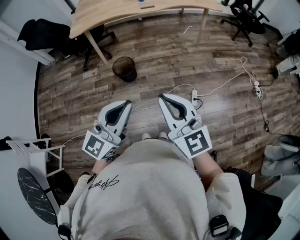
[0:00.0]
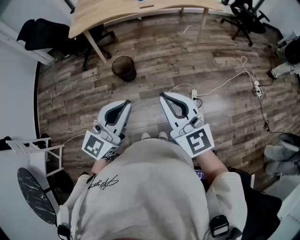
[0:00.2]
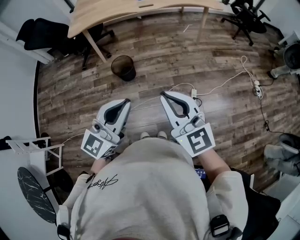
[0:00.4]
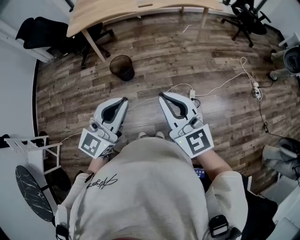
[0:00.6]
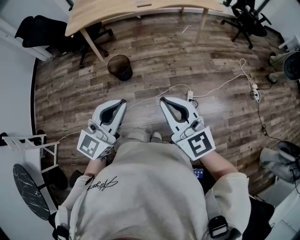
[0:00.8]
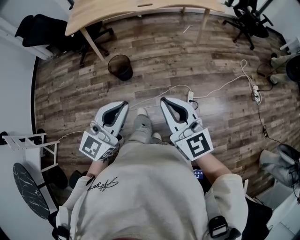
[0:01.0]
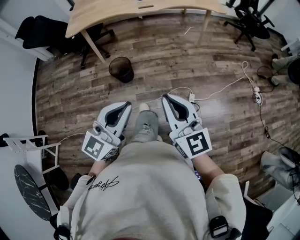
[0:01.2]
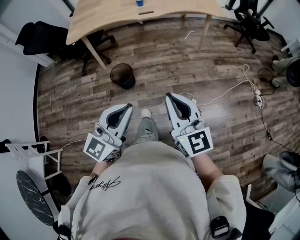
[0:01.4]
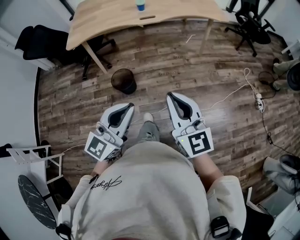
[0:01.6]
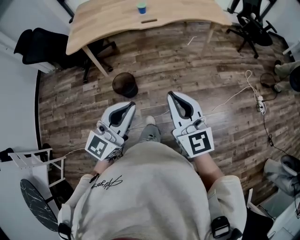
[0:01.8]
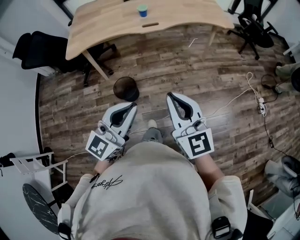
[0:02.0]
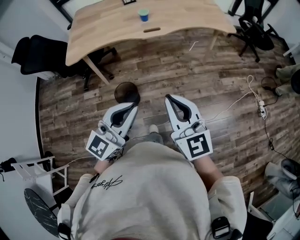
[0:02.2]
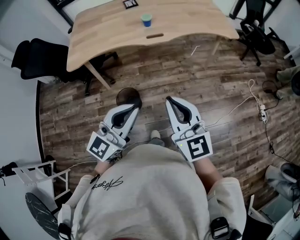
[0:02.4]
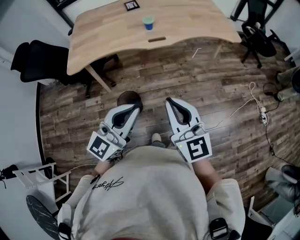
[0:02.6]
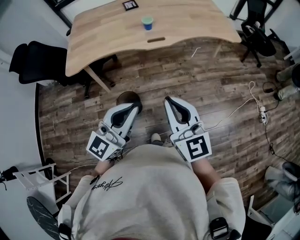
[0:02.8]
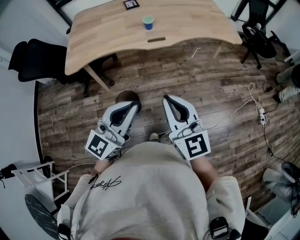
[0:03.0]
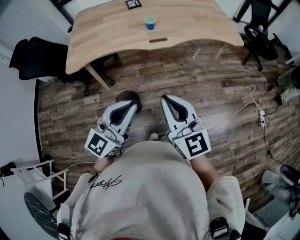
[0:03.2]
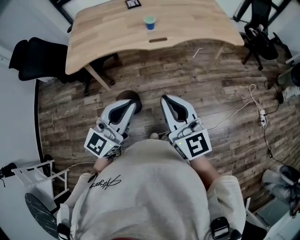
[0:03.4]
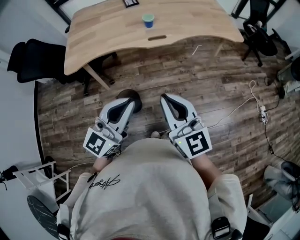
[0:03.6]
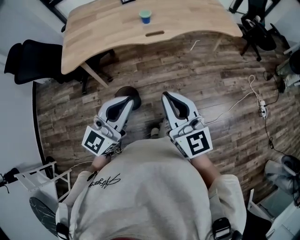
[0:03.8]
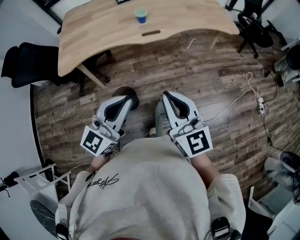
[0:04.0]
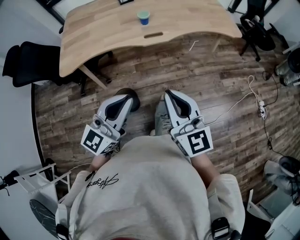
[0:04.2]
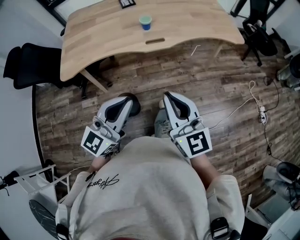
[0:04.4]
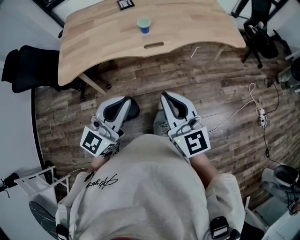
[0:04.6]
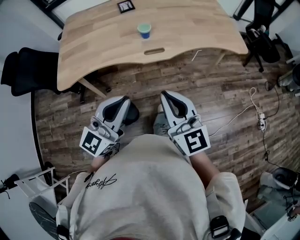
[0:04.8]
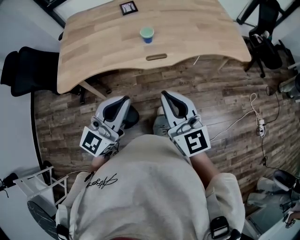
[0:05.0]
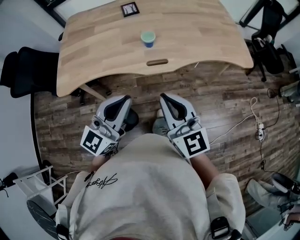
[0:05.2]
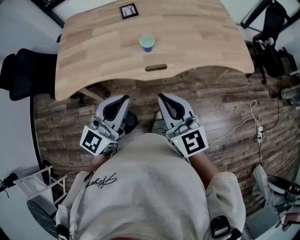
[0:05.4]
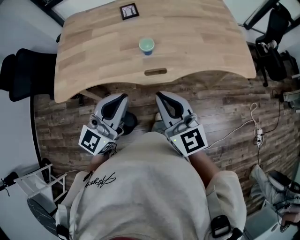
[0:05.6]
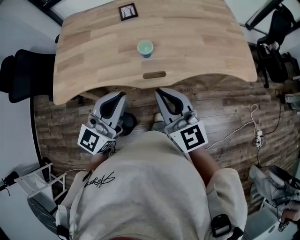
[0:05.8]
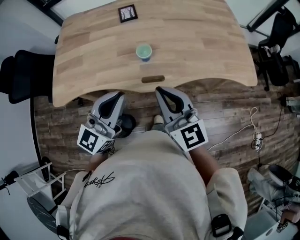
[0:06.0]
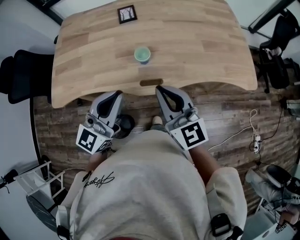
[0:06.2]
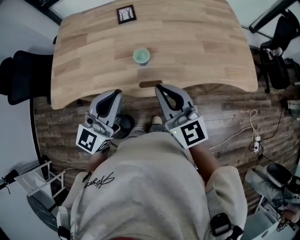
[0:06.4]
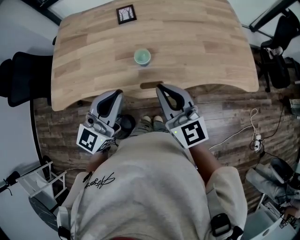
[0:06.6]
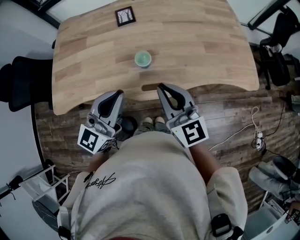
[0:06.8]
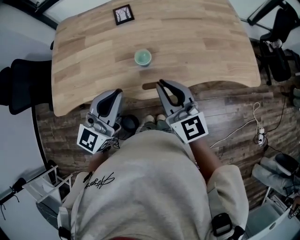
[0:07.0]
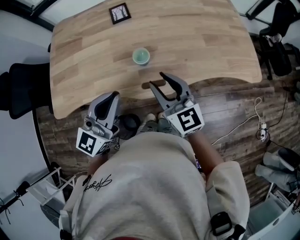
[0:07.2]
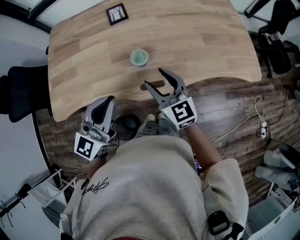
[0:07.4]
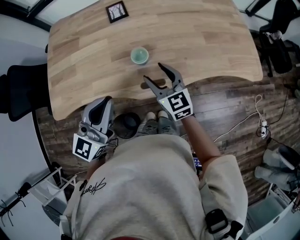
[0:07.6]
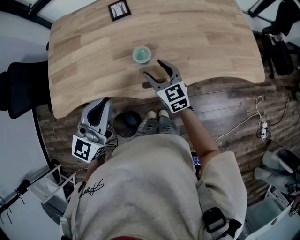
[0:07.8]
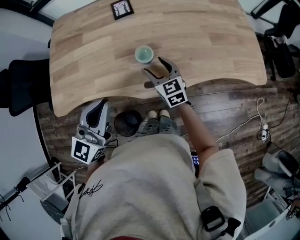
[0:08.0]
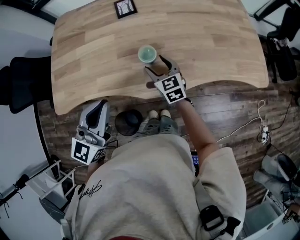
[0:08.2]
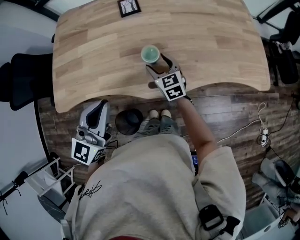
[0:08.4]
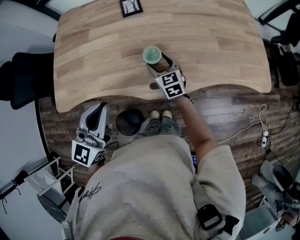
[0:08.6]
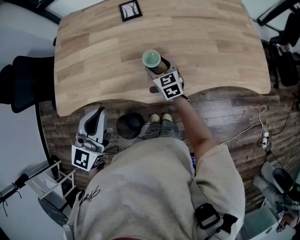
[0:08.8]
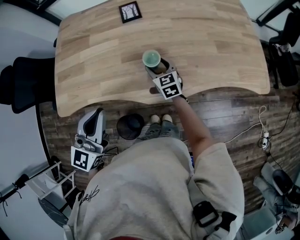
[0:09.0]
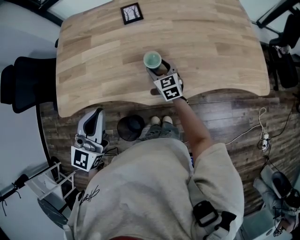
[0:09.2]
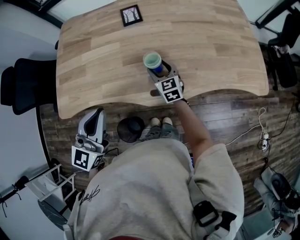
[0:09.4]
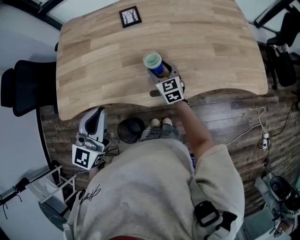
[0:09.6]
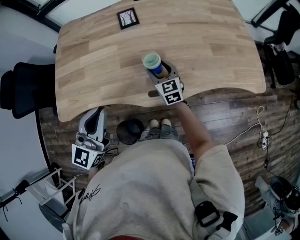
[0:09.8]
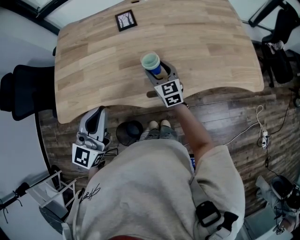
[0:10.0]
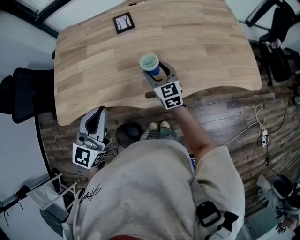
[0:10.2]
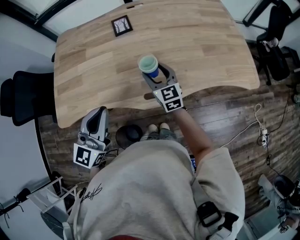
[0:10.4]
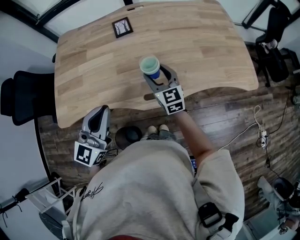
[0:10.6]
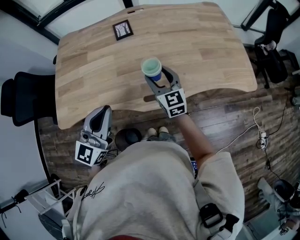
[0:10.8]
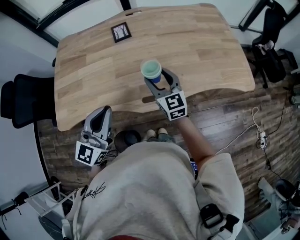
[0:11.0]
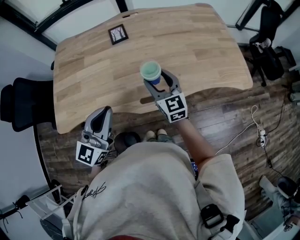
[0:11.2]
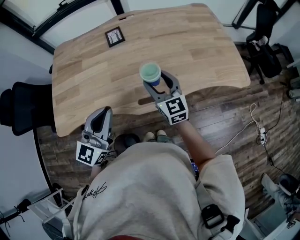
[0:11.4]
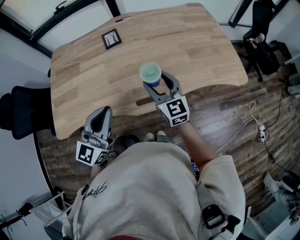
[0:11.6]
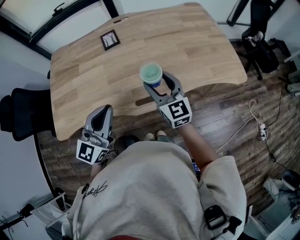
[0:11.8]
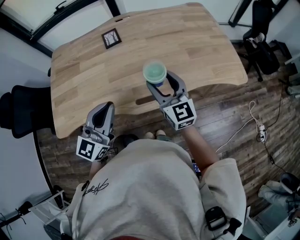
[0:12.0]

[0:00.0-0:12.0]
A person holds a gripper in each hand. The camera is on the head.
0:00.0 to 0:01.6: Both grippers move forward, roughly 15 cm.
0:01.6 to 0:03.0: The grippers both shift forward and to the left by roughly 25 cm.
0:03.0 to 0:04.4: Both grippers travel together forward, approximately 5 cm.
0:04.4 to 0:06.0: Both grippers travel together forward, approximately 30 cm.
0:06.0 to 0:07.6: The left gripper is displaced forward by about 5 cm. Meanwhile the right gripper travels forward and downward by roughly 20 cm, and opens up.
0:07.6 to 0:09.0: The left gripper shifts approximately 5 cm to the left, while the right gripper travels downward and forward by some 15 cm.
0:09.0 to 0:10.4: The right gripper is displaced upward by some 10 cm.
0:10.4 to 0:12.0: The right gripper heads upward, to the right and backward, covering roughly 15 cm; the left gripper moves to the right, about 5 cm.

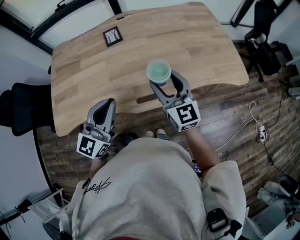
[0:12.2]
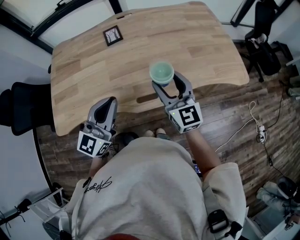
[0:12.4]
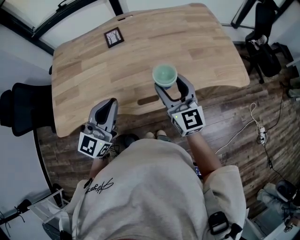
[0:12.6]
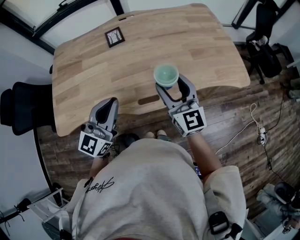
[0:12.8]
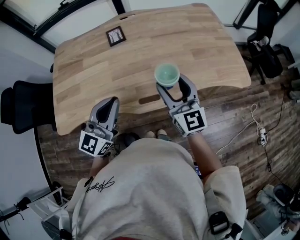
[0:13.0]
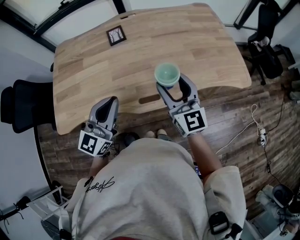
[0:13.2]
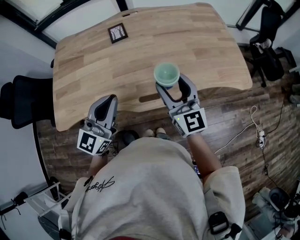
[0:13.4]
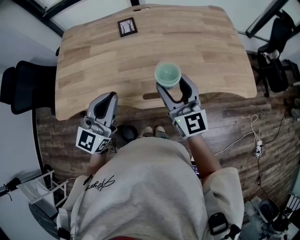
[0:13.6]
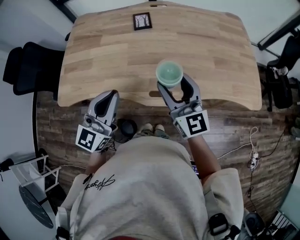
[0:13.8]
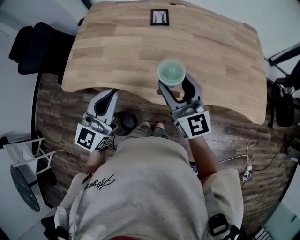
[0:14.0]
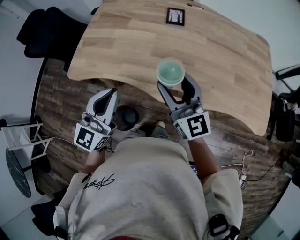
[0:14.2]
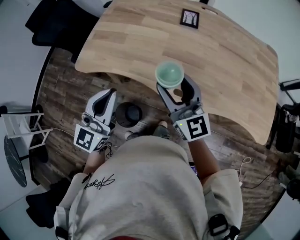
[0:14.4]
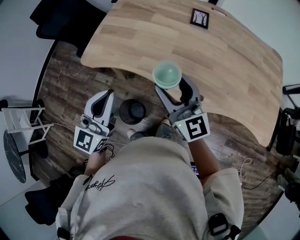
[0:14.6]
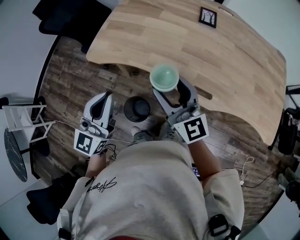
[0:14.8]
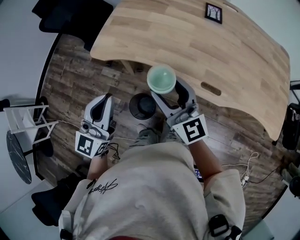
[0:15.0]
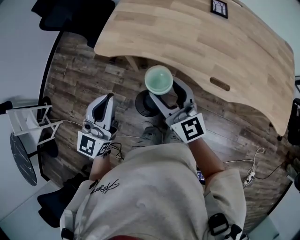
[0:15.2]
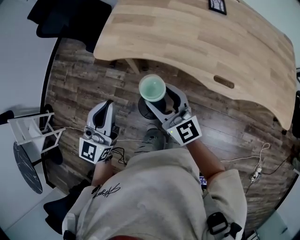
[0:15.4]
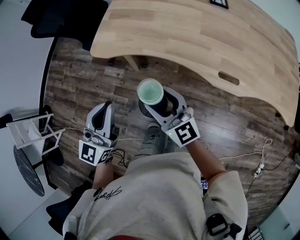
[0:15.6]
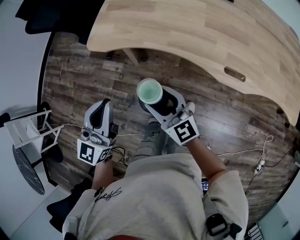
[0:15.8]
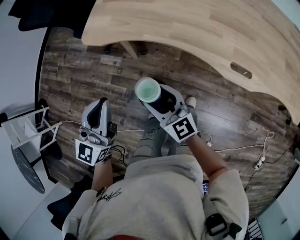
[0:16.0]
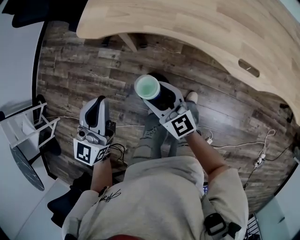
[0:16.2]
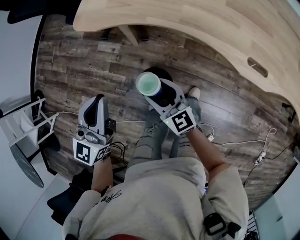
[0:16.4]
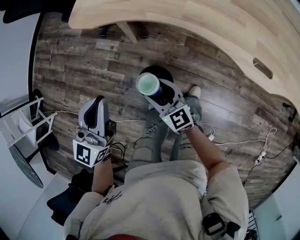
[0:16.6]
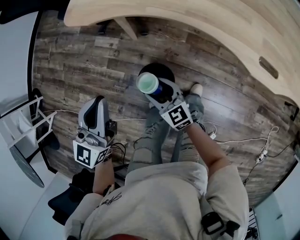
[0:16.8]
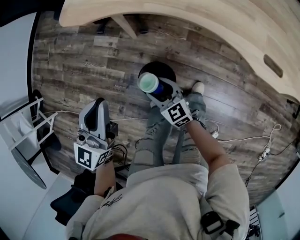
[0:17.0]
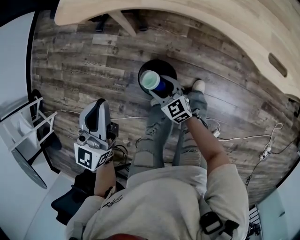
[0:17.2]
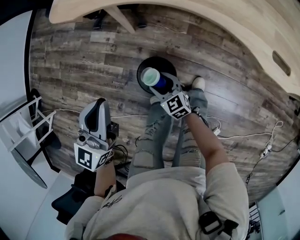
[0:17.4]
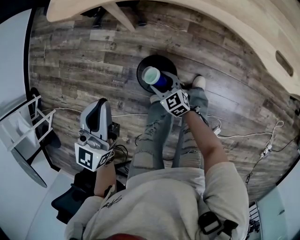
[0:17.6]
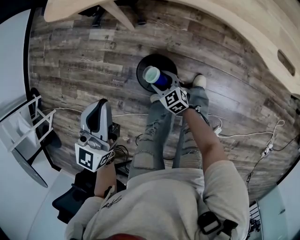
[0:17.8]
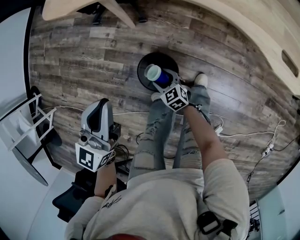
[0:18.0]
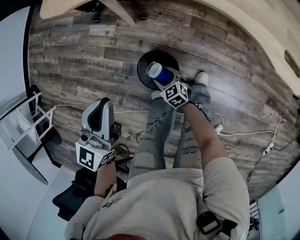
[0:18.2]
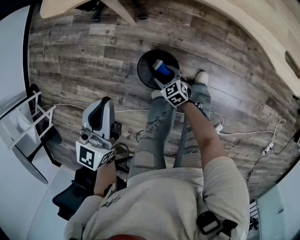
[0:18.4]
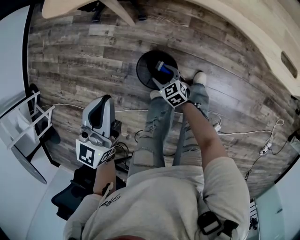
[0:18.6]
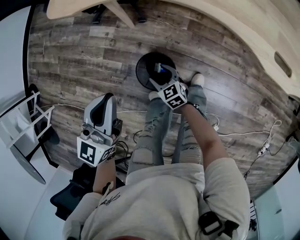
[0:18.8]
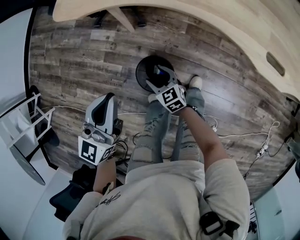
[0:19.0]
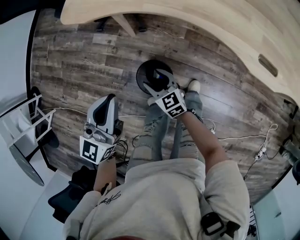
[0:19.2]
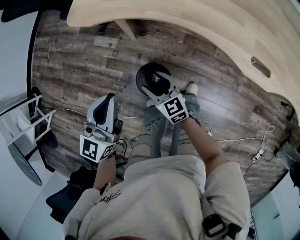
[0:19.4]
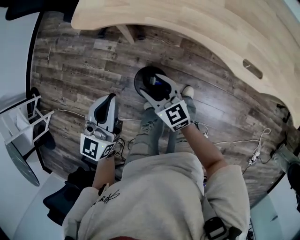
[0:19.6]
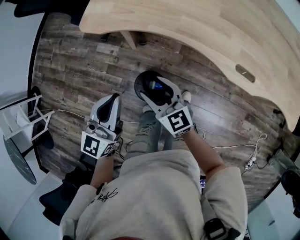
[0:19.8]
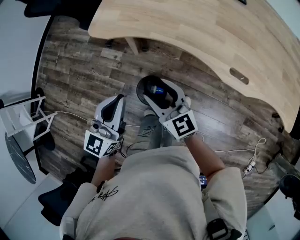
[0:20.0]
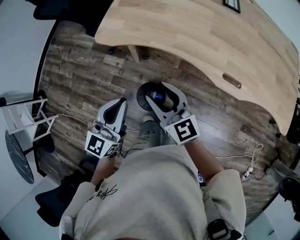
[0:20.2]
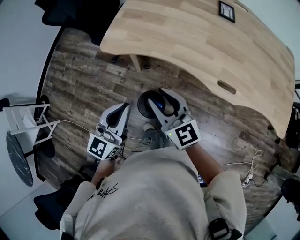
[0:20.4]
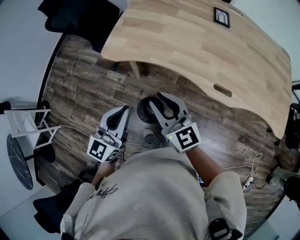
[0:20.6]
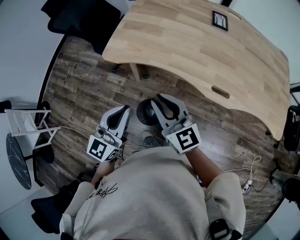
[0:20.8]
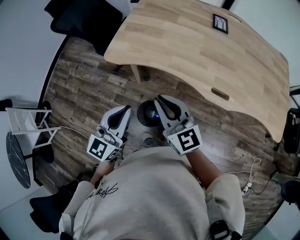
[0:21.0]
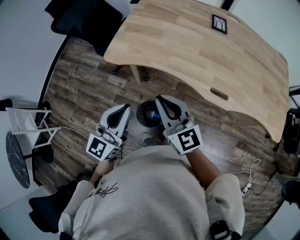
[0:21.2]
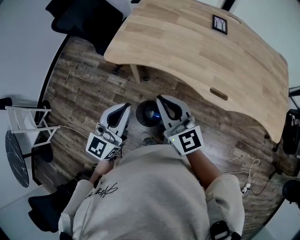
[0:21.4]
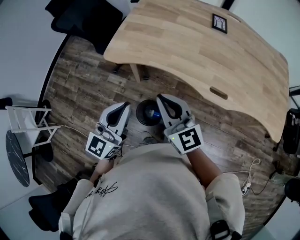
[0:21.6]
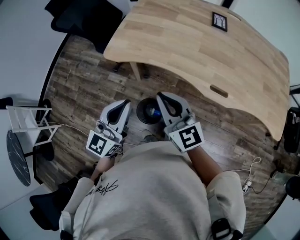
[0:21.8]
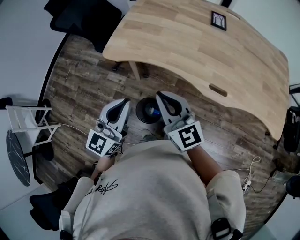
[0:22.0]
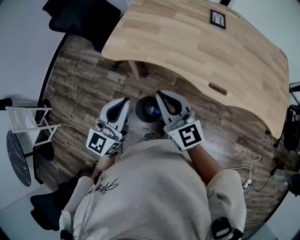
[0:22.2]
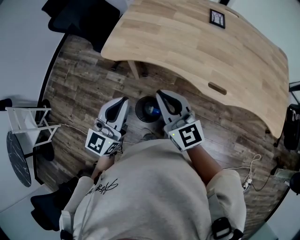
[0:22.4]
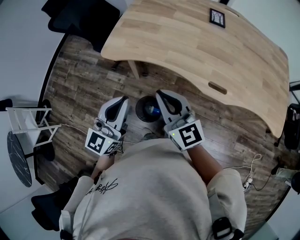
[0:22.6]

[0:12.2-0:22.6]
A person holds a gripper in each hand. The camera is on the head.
0:12.2 to 0:13.6: There are only small adjustments of the grippers.
0:13.6 to 0:15.2: The left gripper shifts by about 35 cm, and rotates approximately 30 degrees. Meanwhile the right gripper ends up roughly 35 cm from where it was, and turns by roughly 40 degrees.
0:15.2 to 0:16.6: The right gripper goes some 30 cm downward, and turns by approximately 20 degrees, while the left gripper heads downward and to the left, covering about 20 cm.
0:16.6 to 0:18.2: The right gripper goes approximately 30 cm downward, and turns by roughly 30 degrees, while the left gripper shifts some 10 cm downward.
0:18.2 to 0:19.6: The right gripper shifts roughly 30 cm upward, and swivels approximately 30 degrees; the left gripper travels upward by approximately 10 cm.
0:19.6 to 0:21.2: The right gripper moves upward, roughly 30 cm, and closes, while the left gripper is displaced upward by approximately 15 cm.
0:21.2 to 0:22.6: The grippers move only a little.

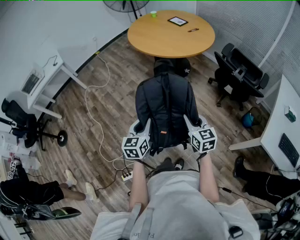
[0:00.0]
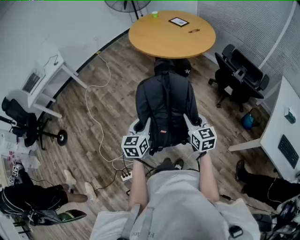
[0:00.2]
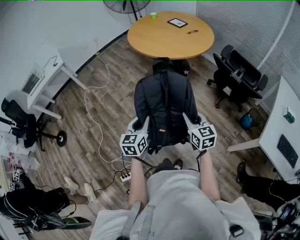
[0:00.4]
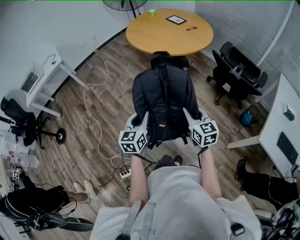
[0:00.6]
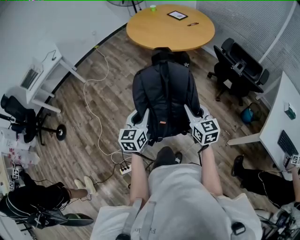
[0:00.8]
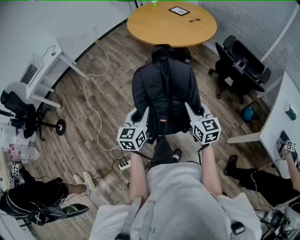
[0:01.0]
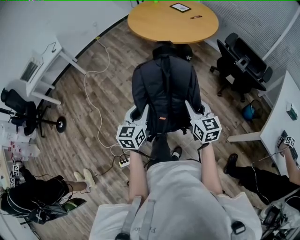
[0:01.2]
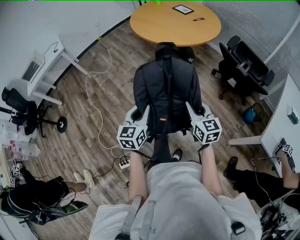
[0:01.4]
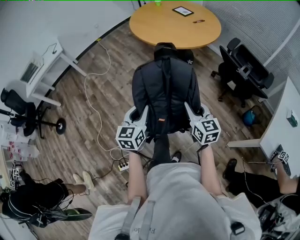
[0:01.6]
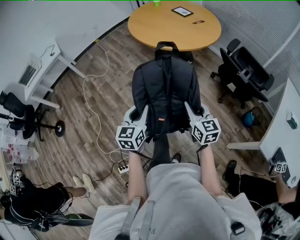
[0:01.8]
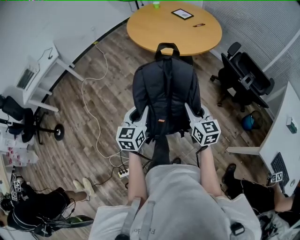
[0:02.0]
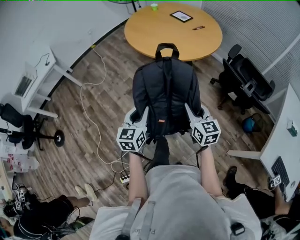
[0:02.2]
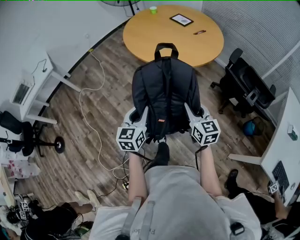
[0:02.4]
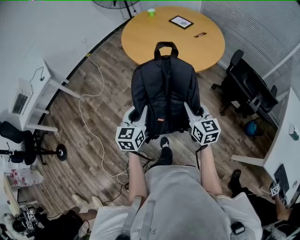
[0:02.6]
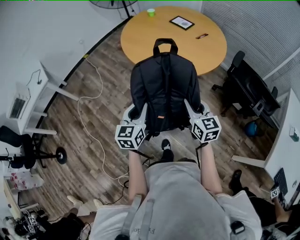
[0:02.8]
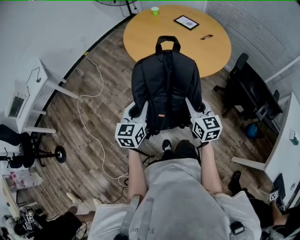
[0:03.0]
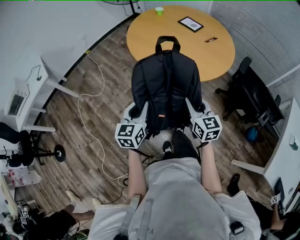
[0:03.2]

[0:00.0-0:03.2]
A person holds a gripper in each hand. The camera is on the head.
0:00.0 to 0:01.6: The grippers move only a little.
0:01.6 to 0:03.2: The two grippers travel together, forward, some 40 cm.
